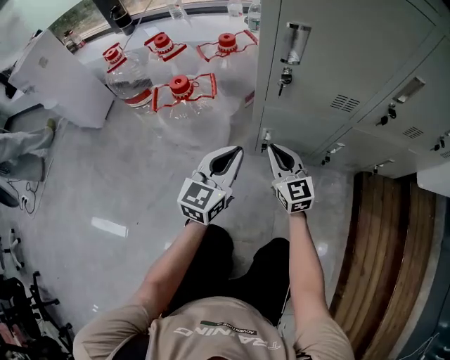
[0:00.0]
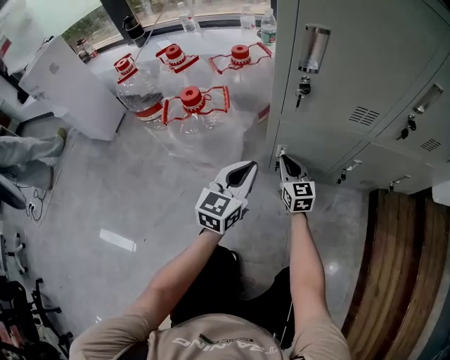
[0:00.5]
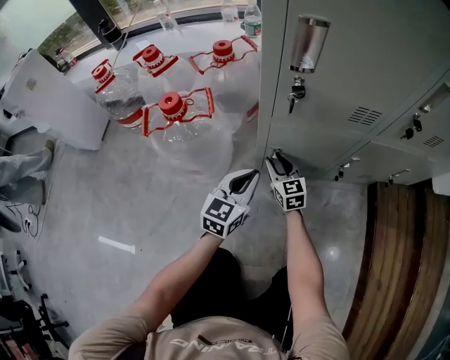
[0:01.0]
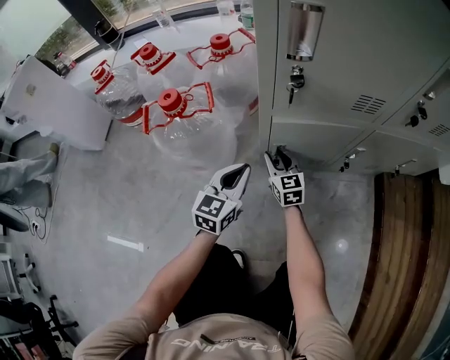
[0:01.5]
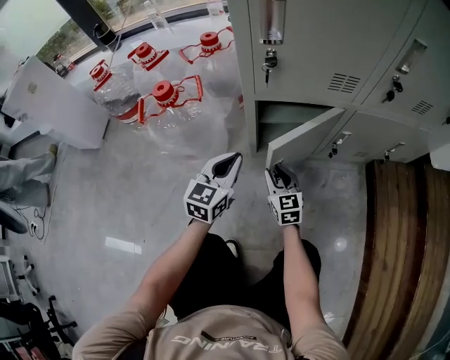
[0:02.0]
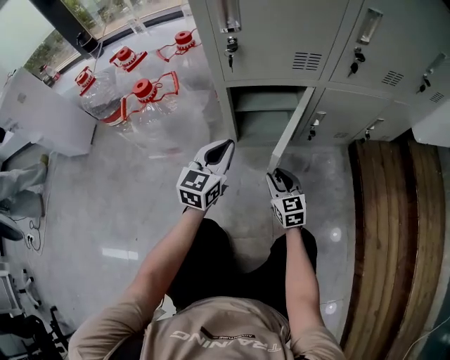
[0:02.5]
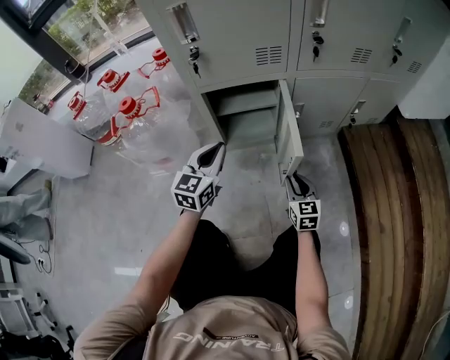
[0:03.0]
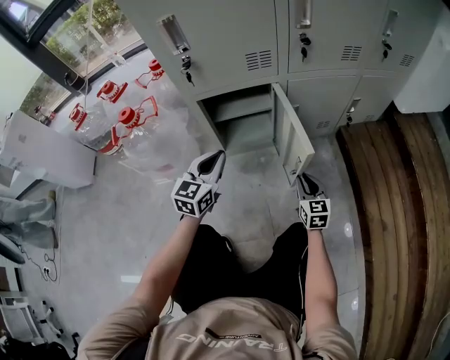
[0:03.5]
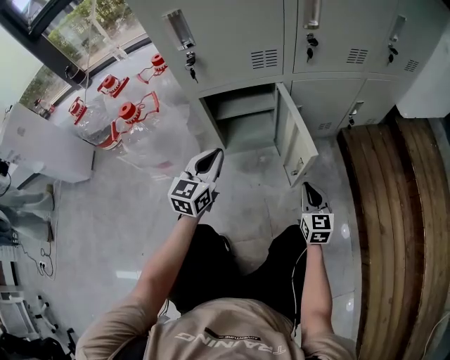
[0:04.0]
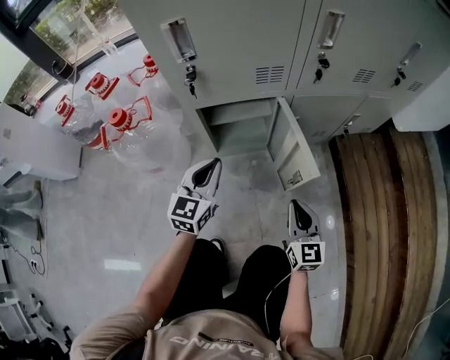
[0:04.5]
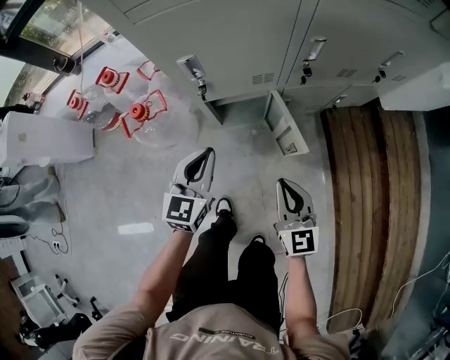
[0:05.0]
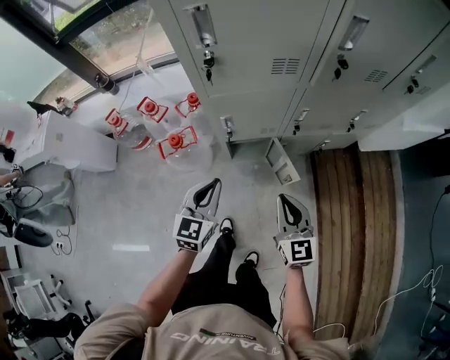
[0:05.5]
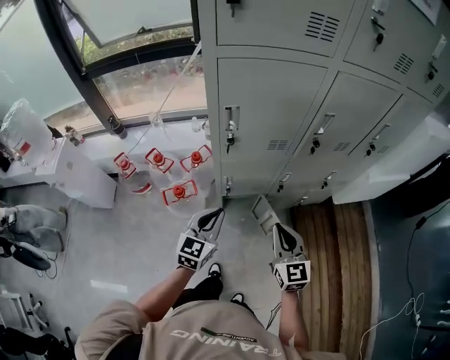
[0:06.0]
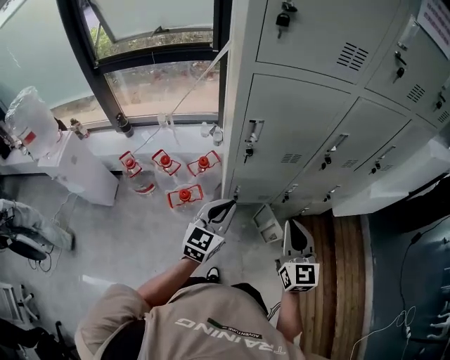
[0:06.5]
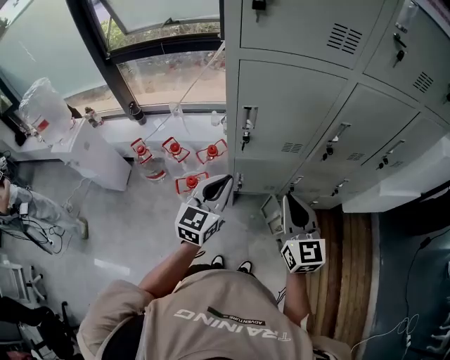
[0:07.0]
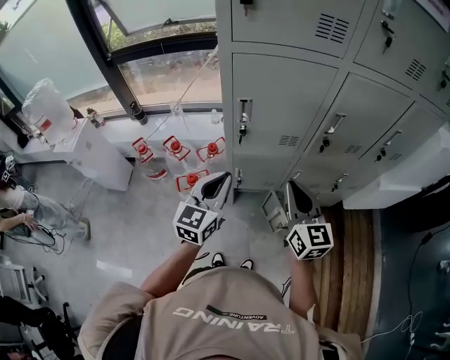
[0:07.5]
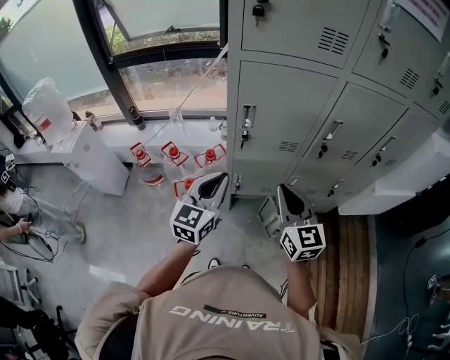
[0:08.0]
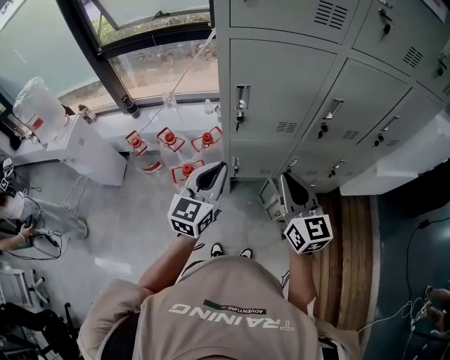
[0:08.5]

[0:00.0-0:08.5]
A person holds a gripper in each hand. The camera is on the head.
0:00.0 to 0:02.0: The right gripper moves downward, about 15 cm, and opens its fingers; the left gripper moves downward, about 10 cm.
0:02.0 to 0:04.0: The left gripper is displaced to the right by approximately 10 cm. Meanwhile the right gripper goes some 30 cm to the right and backward, turns by some 20 degrees, and closes up.
0:04.0 to 0:06.5: Both grippers move upward, about 70 cm.
0:06.5 to 0:08.5: The left gripper travels upward by some 5 cm.

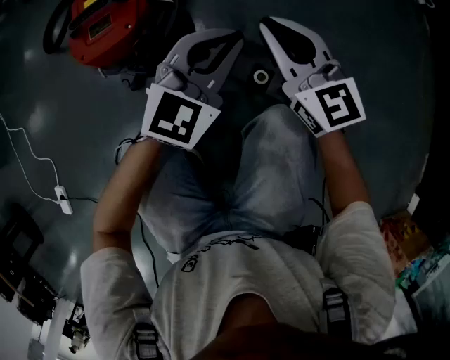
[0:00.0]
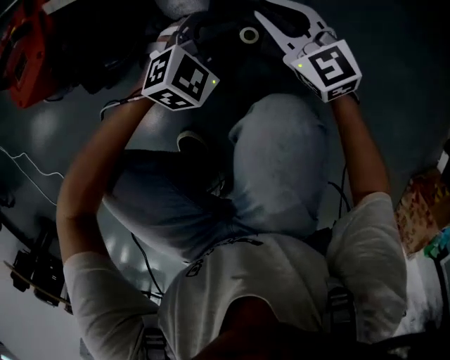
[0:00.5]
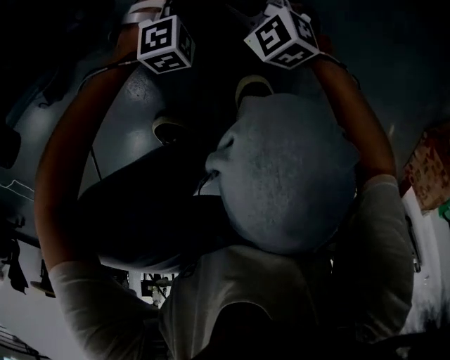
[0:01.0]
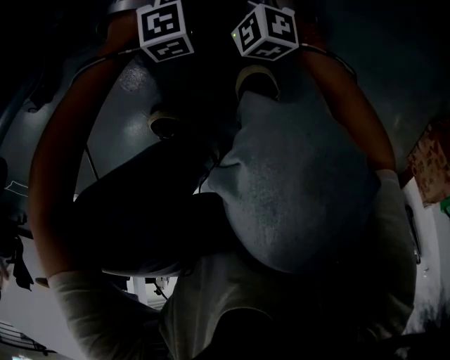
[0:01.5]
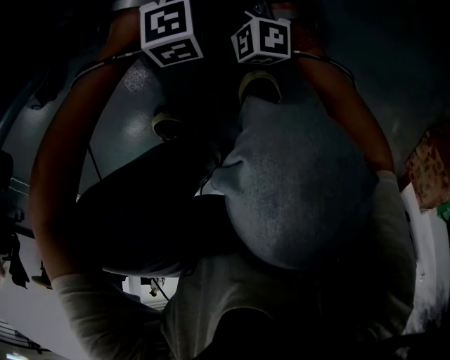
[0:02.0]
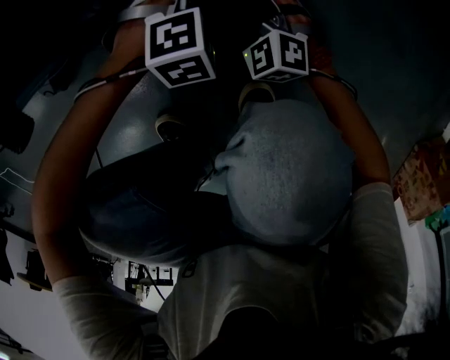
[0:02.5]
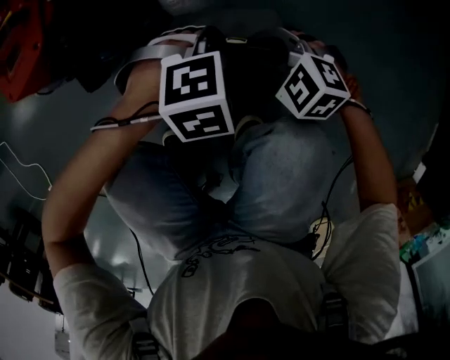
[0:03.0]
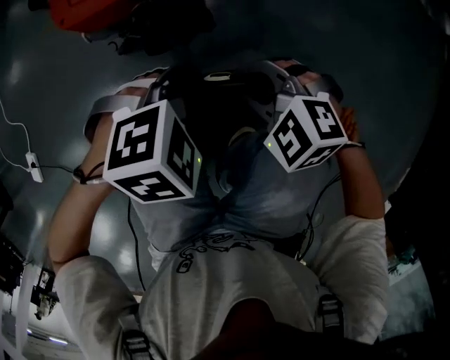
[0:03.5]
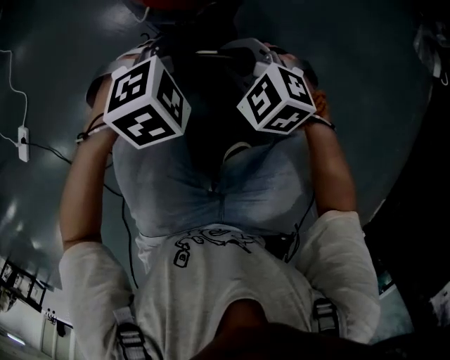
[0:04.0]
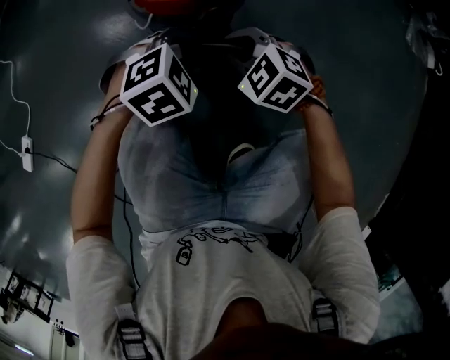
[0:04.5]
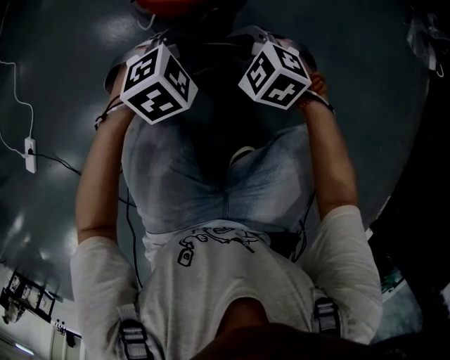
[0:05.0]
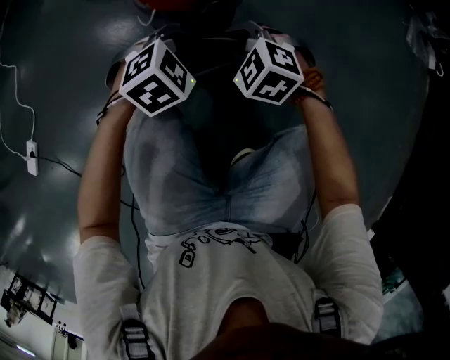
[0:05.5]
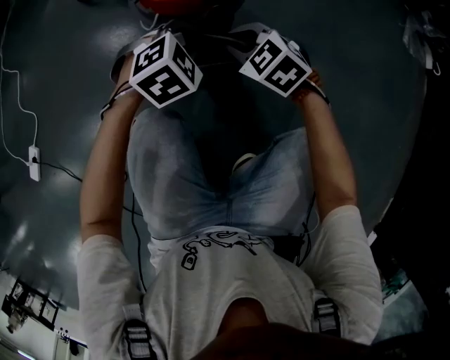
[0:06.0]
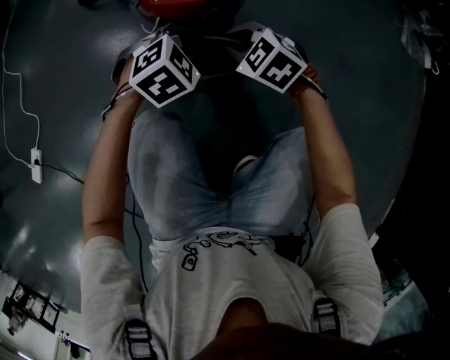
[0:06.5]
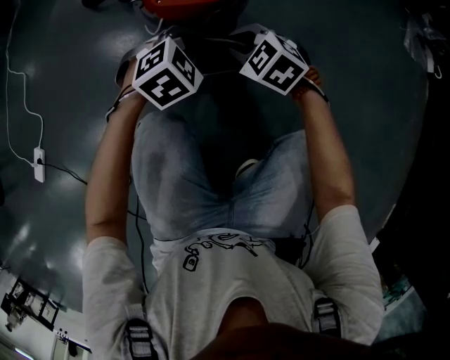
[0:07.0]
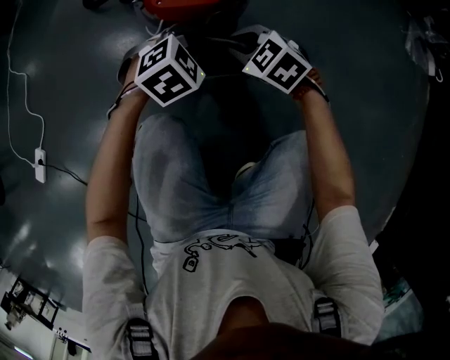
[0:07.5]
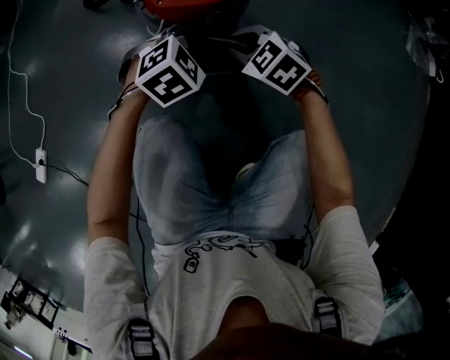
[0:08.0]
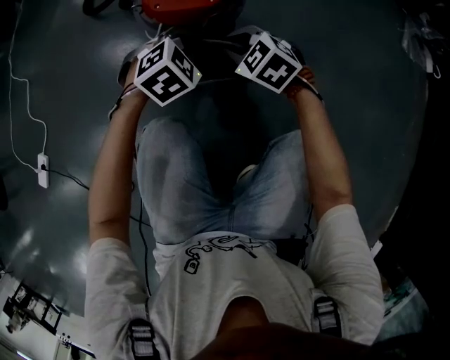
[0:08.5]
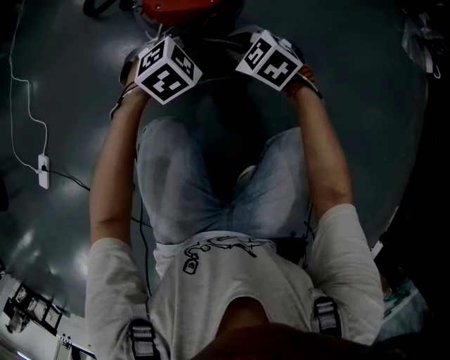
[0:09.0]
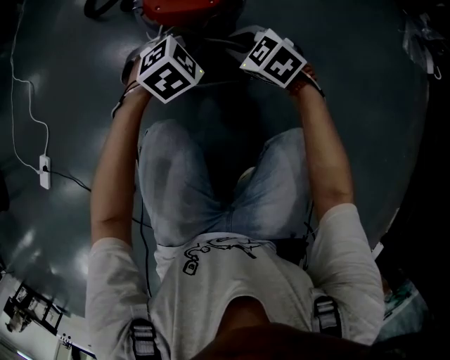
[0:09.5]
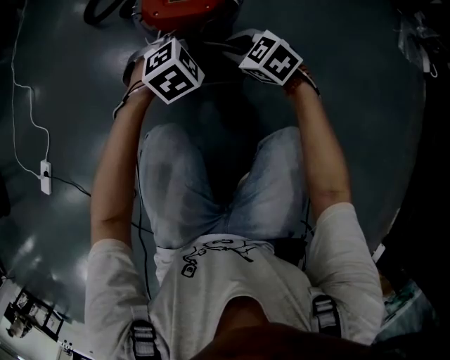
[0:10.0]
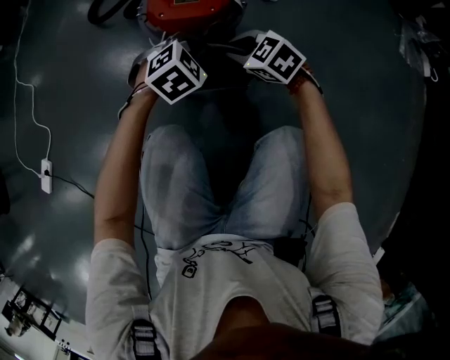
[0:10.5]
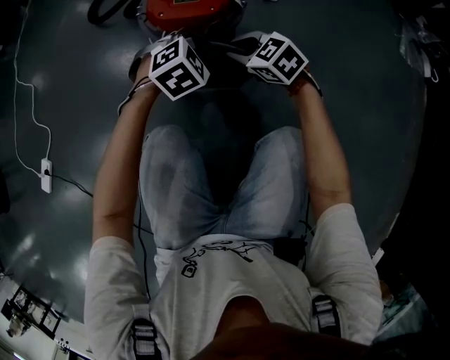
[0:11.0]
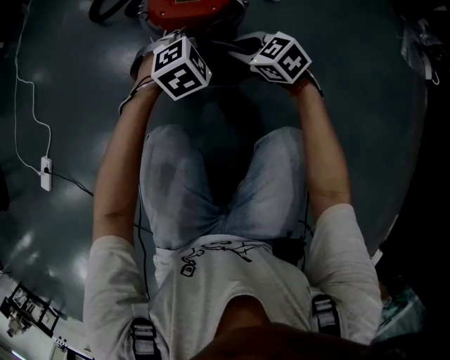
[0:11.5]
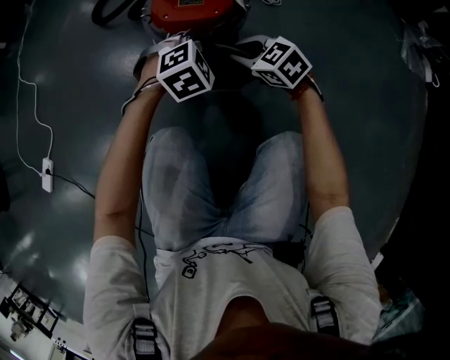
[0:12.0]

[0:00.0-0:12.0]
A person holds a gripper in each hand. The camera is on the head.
0:00.0 to 0:02.0: Both grippers travel together downward, approximately 50 cm. The right gripper angles its fingers downward, by approximately 40 degrees, and opens up; the left gripper angles its fingers downward, by about 60 degrees, and opens, then closes once more.
0:02.0 to 0:04.0: The grippers both shift upward by some 35 cm. The right gripper swivels about 40 degrees, and closes up, while the left gripper twists roughly 50 degrees counterclockwise, seen from behind.
0:04.0 to 0:06.0: The grippers both shift forward by some 10 cm.
0:06.0 to 0:12.0: The grippers stay close to where they were, moving slightly.

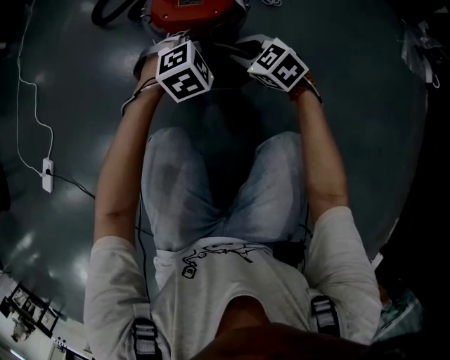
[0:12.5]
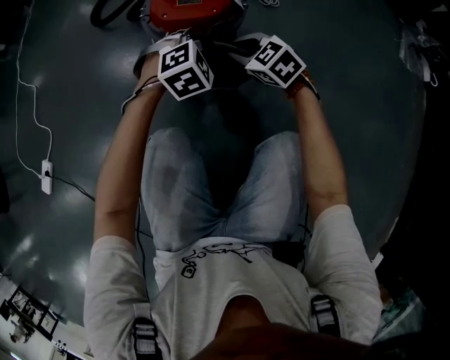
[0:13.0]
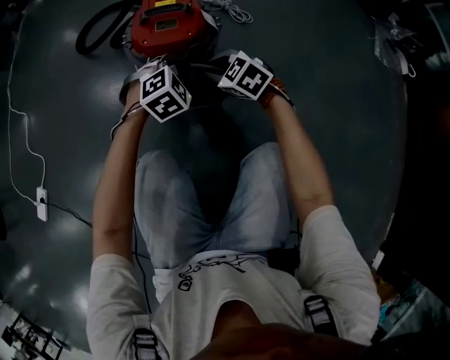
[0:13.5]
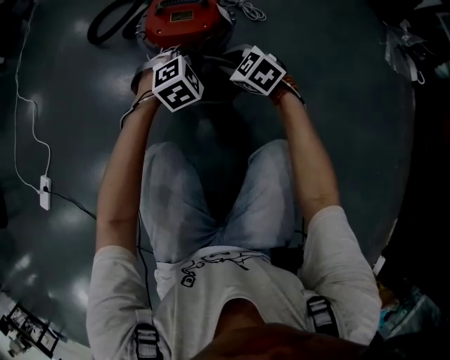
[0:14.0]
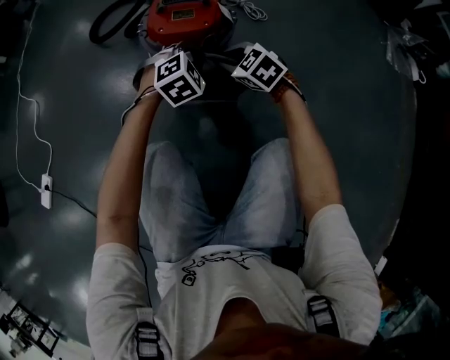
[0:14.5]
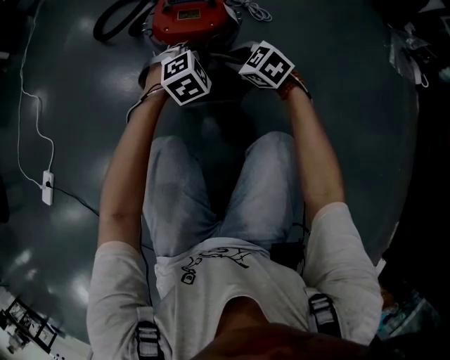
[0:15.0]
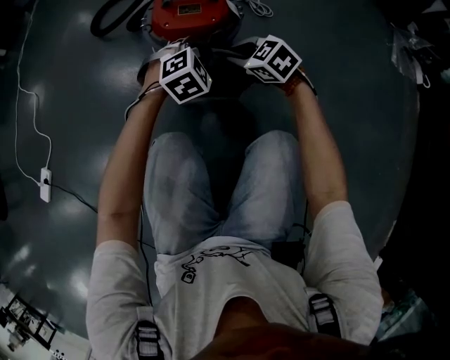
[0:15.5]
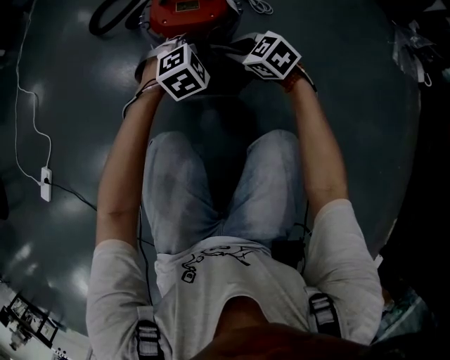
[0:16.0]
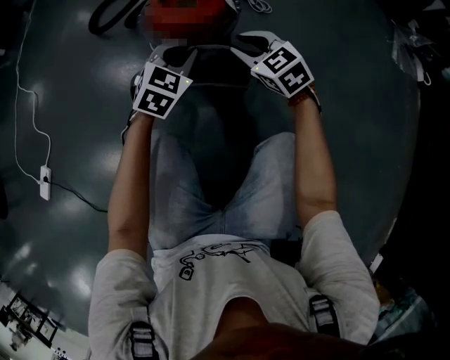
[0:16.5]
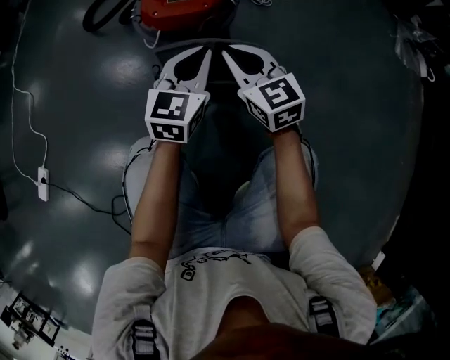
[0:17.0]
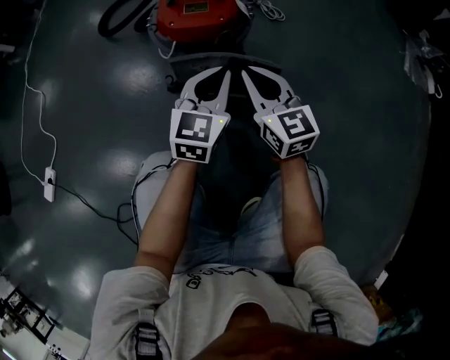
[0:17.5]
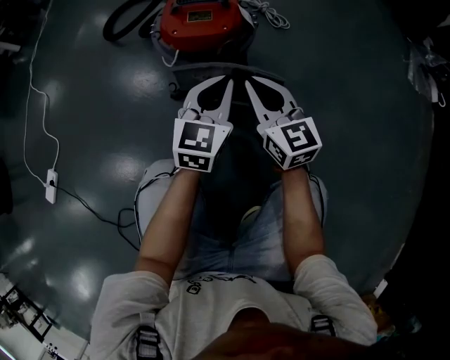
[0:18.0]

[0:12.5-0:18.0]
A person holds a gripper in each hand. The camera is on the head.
0:12.5 to 0:16.0: There are only small adjustments of the grippers.
0:16.0 to 0:18.0: The right gripper moves upward and backward, approximately 10 cm, and angles its fingers upward, by roughly 40 degrees; the left gripper shifts some 10 cm backward and upward, and twists about 40 degrees counterclockwise, seen from behind.

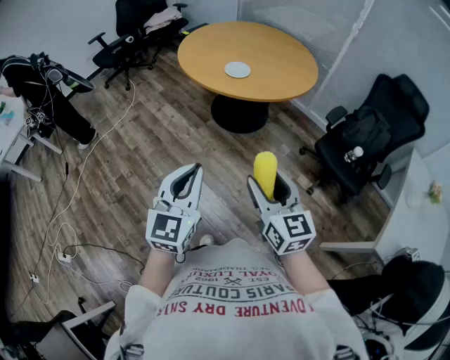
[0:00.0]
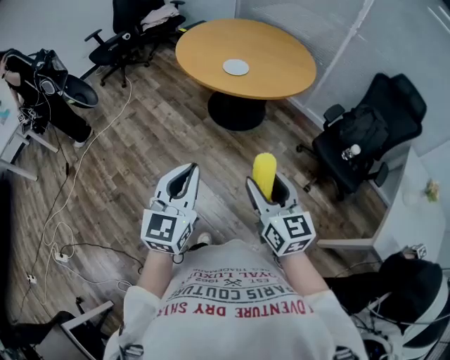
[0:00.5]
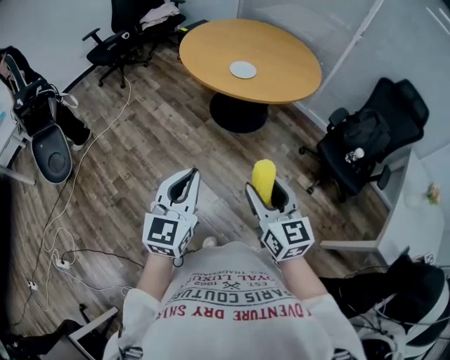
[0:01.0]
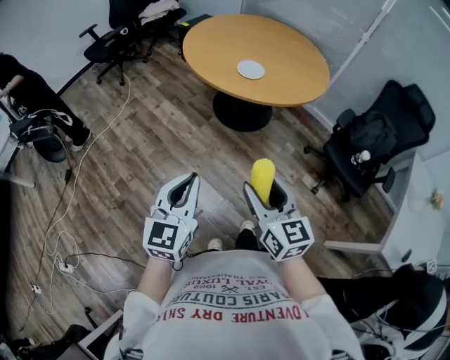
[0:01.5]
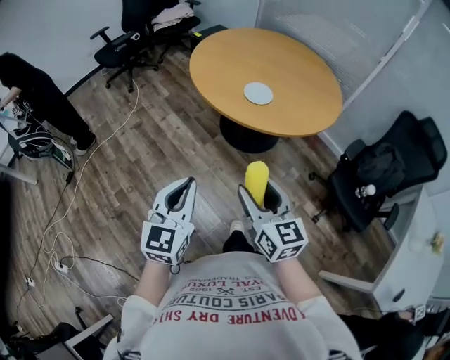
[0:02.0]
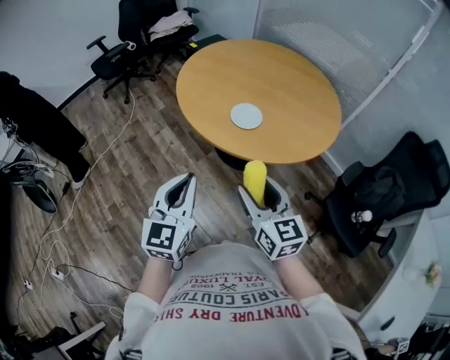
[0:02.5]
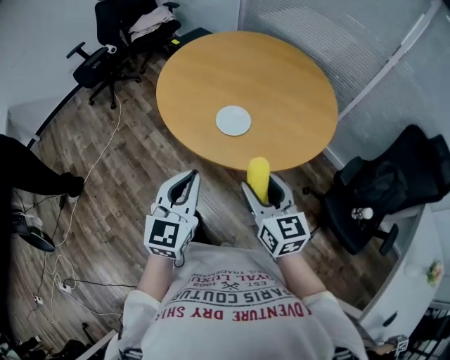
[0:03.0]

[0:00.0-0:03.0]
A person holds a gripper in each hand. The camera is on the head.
0:00.0 to 0:01.5: Both grippers travel together to the left and forward, approximately 10 cm.
0:01.5 to 0:03.0: The grippers both shift forward and to the right by roughly 35 cm.
